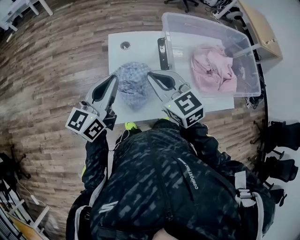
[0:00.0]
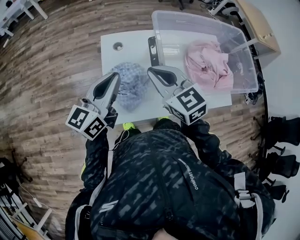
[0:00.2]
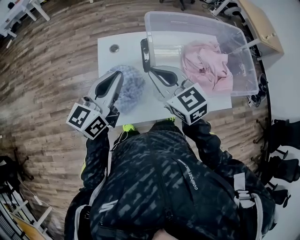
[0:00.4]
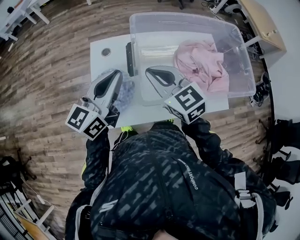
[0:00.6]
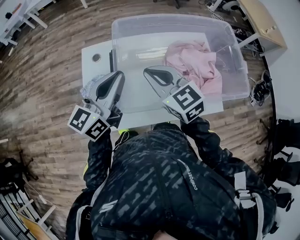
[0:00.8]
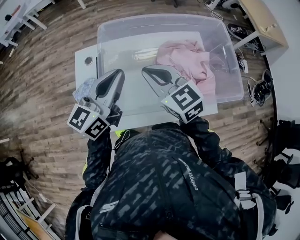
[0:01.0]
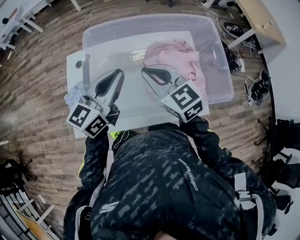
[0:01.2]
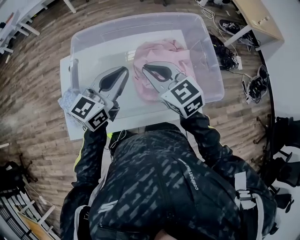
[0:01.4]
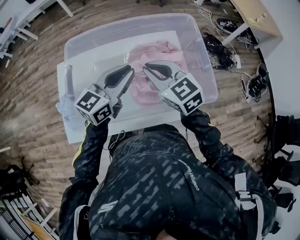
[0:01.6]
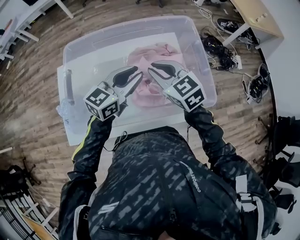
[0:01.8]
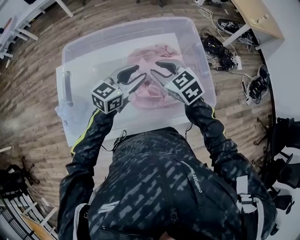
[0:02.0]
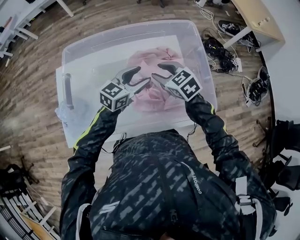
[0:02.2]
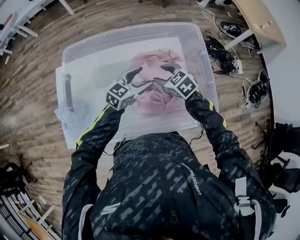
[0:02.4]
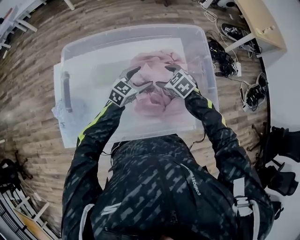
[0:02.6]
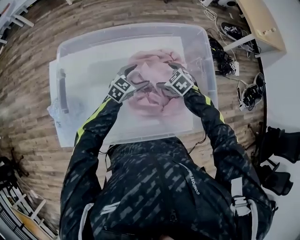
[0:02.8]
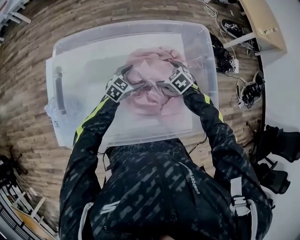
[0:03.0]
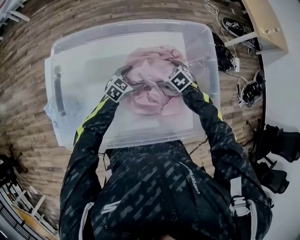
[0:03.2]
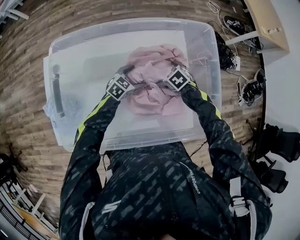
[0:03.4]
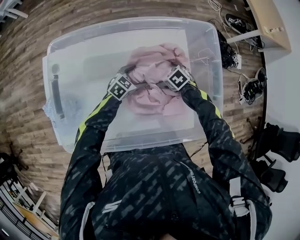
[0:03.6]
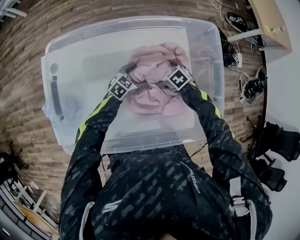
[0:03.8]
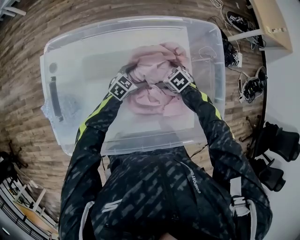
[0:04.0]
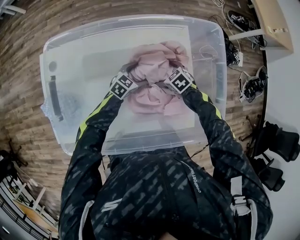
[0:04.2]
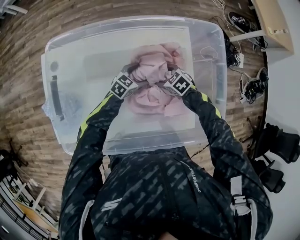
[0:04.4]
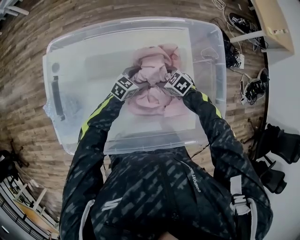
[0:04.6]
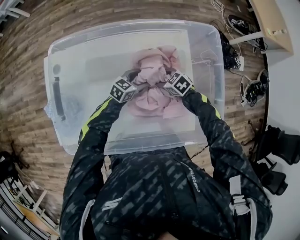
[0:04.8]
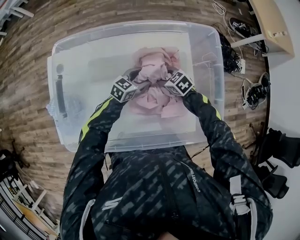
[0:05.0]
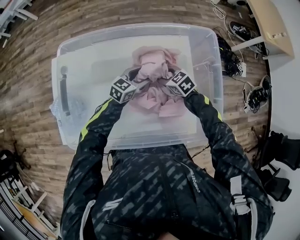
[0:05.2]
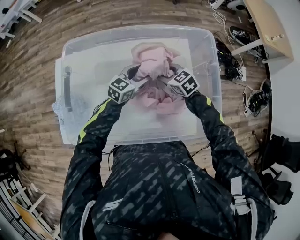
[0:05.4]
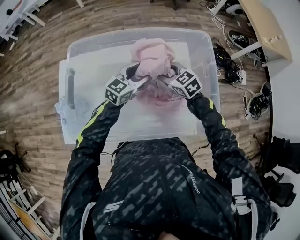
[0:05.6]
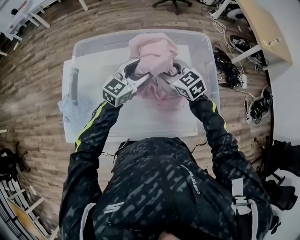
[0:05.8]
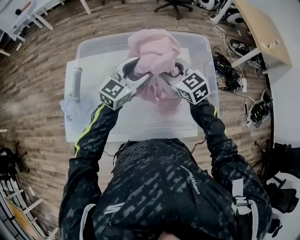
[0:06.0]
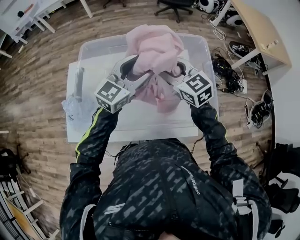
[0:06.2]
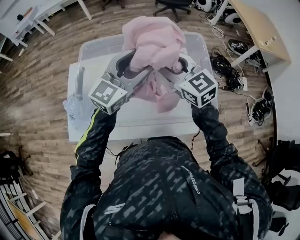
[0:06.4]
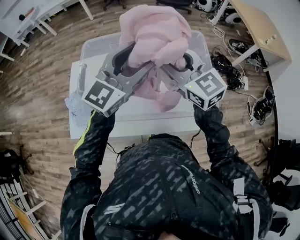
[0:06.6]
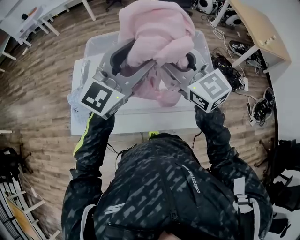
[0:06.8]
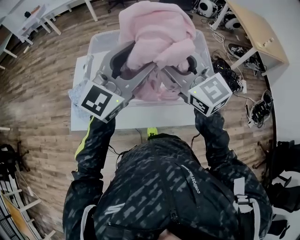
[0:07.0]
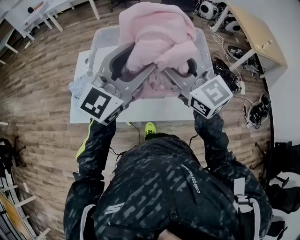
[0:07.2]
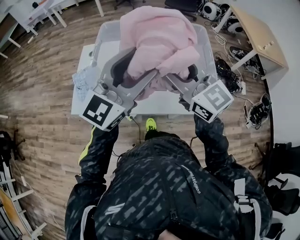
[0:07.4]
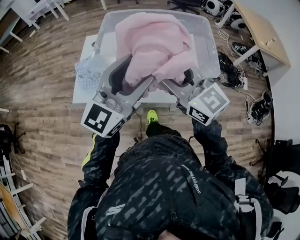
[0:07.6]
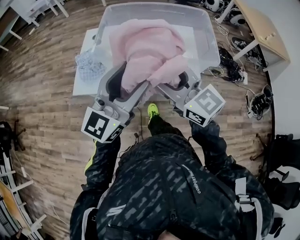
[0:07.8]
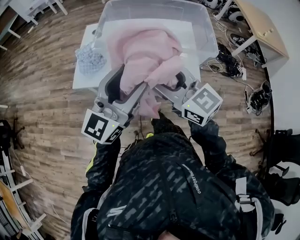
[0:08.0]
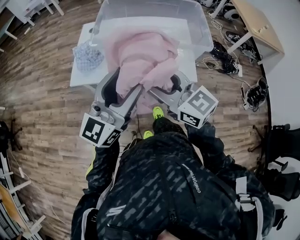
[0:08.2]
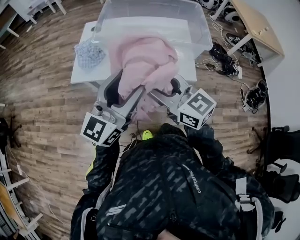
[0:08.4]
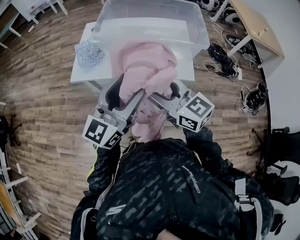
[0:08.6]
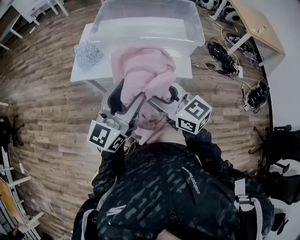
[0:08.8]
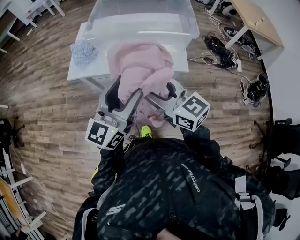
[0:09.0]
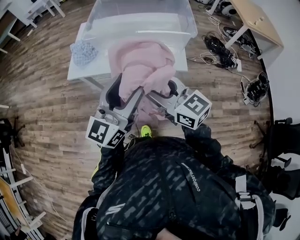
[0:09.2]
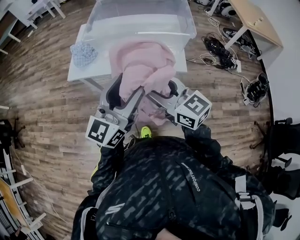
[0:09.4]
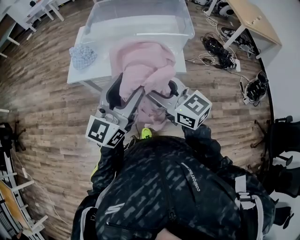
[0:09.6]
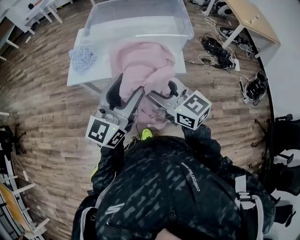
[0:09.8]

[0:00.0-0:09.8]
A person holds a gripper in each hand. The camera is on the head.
0:00.0 to 0:01.4: The two grippers travel together, to the right, roughly 40 cm.
0:01.4 to 0:02.8: The right gripper travels downward, forward and to the right by approximately 30 cm, tips its fingers downward by approximately 40 degrees, and opens its fingers, while the left gripper heads downward and forward, covering roughly 30 cm, swivels roughly 30 degrees, and opens up.
0:02.8 to 0:04.2: The two grippers go about 10 cm downward.
0:04.2 to 0:05.6: The grippers both shift upward by approximately 20 cm. The left gripper changes its angle by some 30 degrees, and closes its fingers. Meanwhile the right gripper rotates approximately 30 degrees, and closes.
0:05.6 to 0:07.0: The two grippers go roughly 35 cm upward and backward. The right gripper angles its fingers upward, by roughly 30 degrees. The left gripper swivels approximately 30 degrees.
0:07.0 to 0:08.4: Both grippers travel together backward, some 35 cm. The left gripper turns by roughly 20 degrees; the right gripper rotates about 20 degrees.
0:08.4 to 0:09.8: Both grippers move backward and to the right, roughly 10 cm.

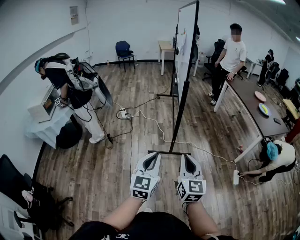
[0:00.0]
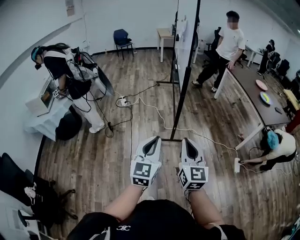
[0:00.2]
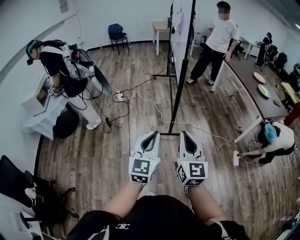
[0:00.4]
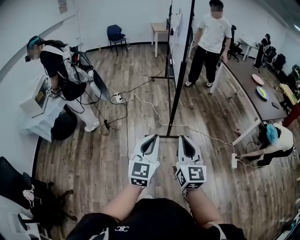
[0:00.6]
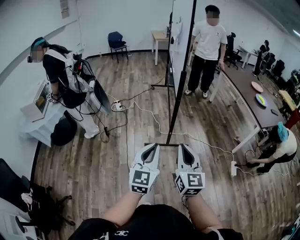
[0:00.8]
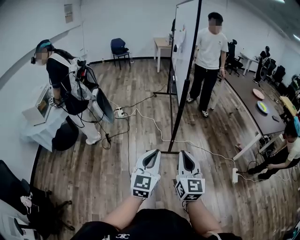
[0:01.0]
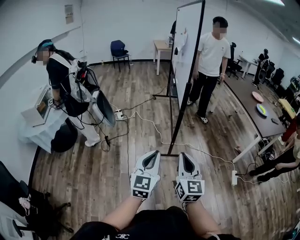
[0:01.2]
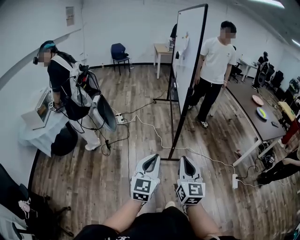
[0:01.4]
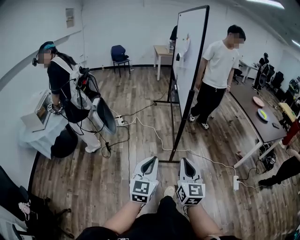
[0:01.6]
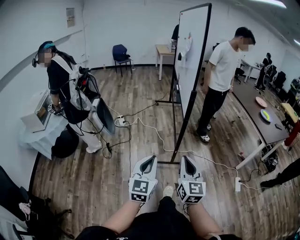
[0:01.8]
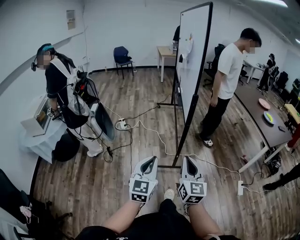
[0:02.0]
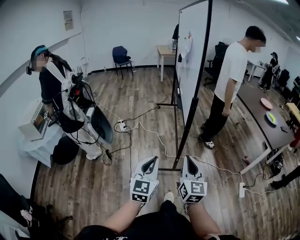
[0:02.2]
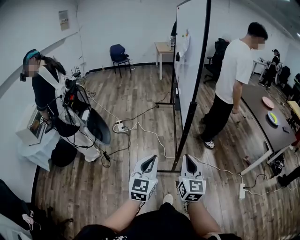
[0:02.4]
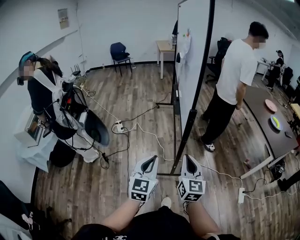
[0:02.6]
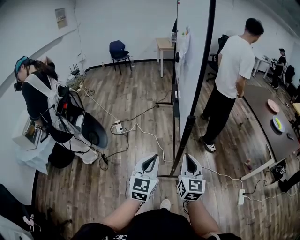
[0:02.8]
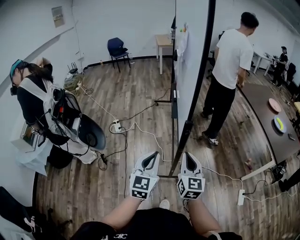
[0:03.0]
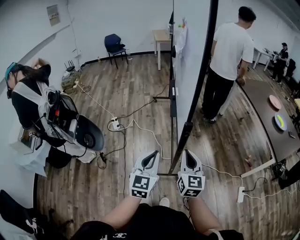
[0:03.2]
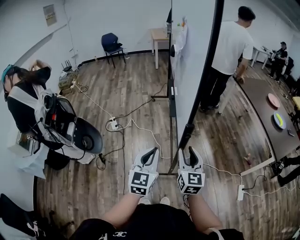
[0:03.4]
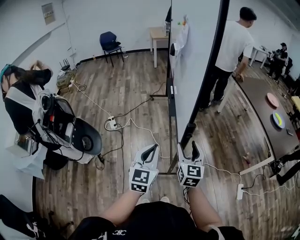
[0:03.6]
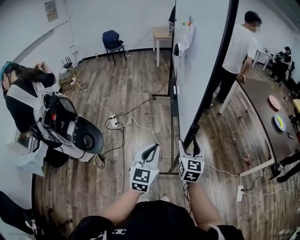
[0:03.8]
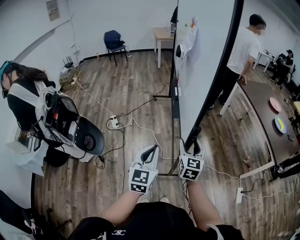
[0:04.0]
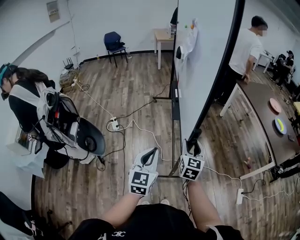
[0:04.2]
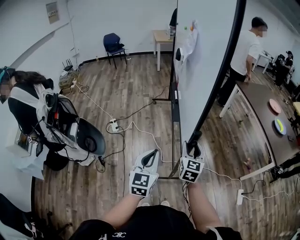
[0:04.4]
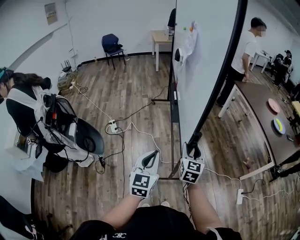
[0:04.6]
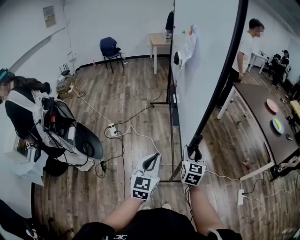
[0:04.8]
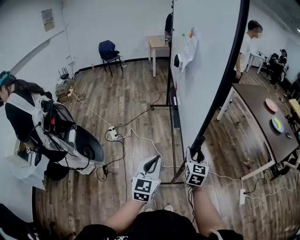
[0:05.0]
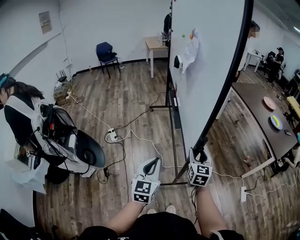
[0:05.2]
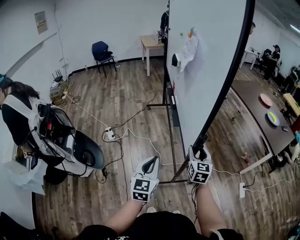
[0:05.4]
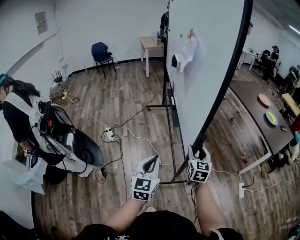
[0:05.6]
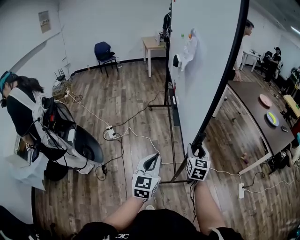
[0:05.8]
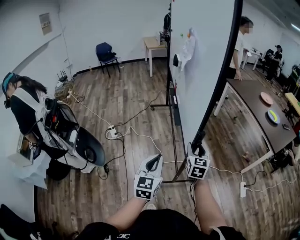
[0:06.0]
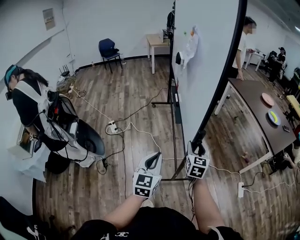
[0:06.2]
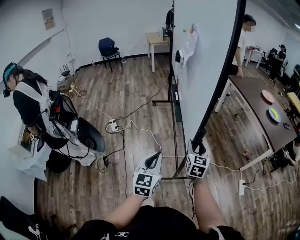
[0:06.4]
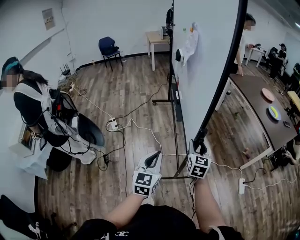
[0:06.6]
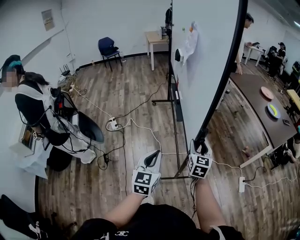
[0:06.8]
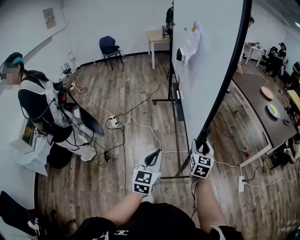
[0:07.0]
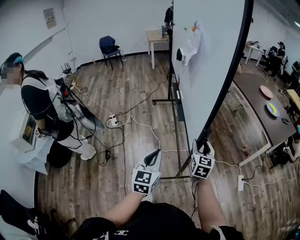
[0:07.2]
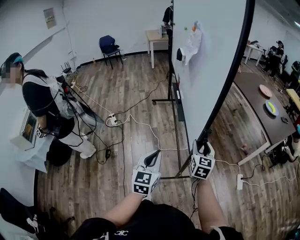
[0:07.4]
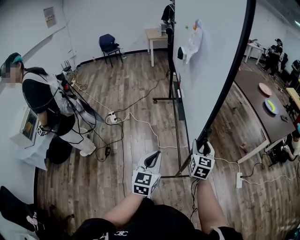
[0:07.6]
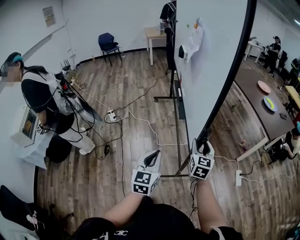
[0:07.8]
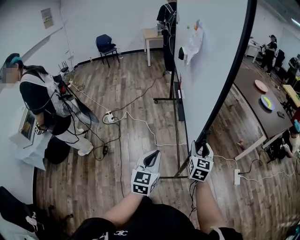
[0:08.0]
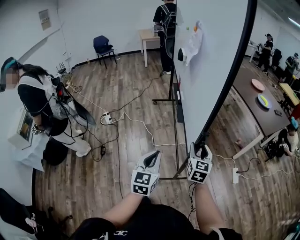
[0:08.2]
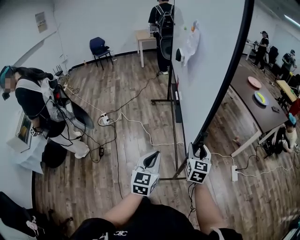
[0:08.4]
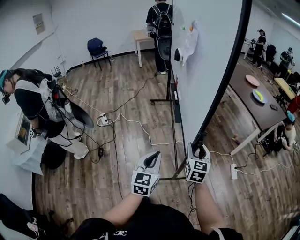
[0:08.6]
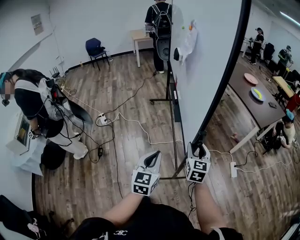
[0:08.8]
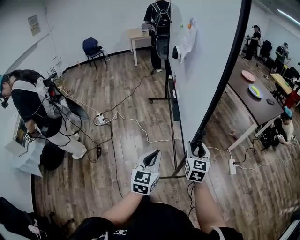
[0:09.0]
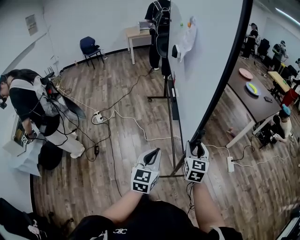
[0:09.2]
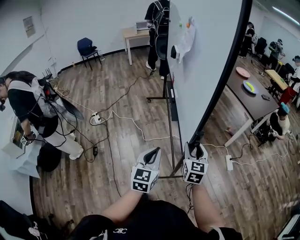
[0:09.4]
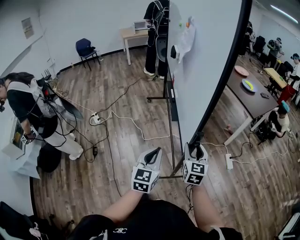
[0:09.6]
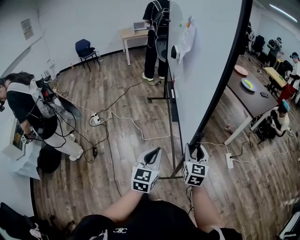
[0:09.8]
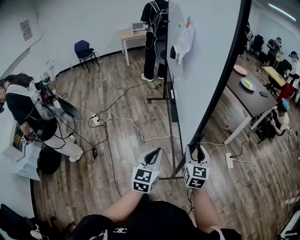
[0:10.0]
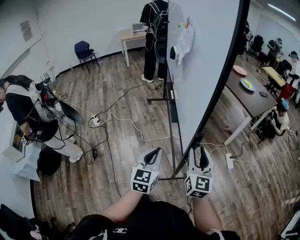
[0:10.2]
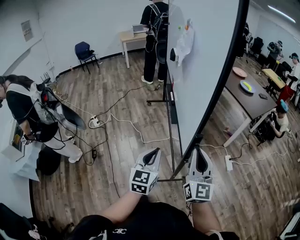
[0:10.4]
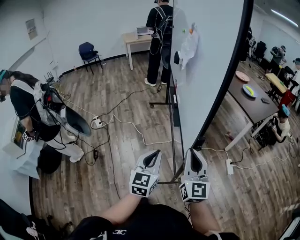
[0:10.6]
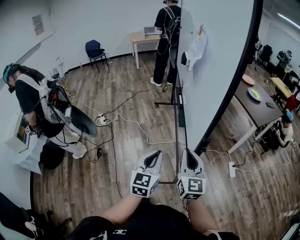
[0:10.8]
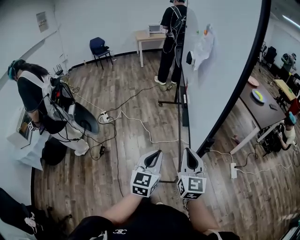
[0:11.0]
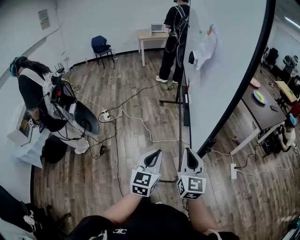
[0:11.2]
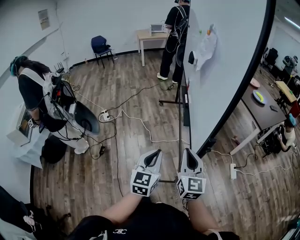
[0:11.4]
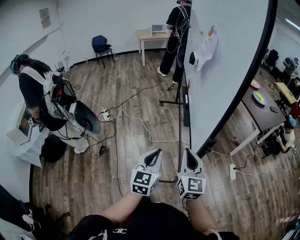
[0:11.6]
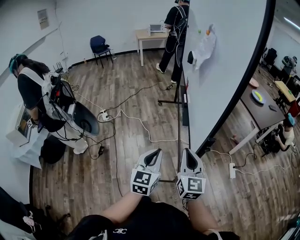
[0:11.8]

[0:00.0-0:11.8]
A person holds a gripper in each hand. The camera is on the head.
0:00.0 to 0:01.4: Both grippers move forward and to the left, about 10 cm.
0:01.4 to 0:03.0: Both grippers move forward, approximately 35 cm.
0:03.0 to 0:04.4: The right gripper shifts about 10 cm forward, and opens up; the left gripper goes about 5 cm forward.
0:04.4 to 0:06.0: The right gripper shifts by roughly 5 cm; the left gripper is displaced backward by roughly 5 cm.
0:06.0 to 0:07.4: The right gripper heads to the right and backward, covering some 15 cm, while the left gripper travels backward and to the right by about 10 cm.
0:07.4 to 0:08.8: The right gripper moves backward and to the right, approximately 10 cm; the left gripper travels to the right and backward by approximately 10 cm.
0:08.8 to 0:10.4: The right gripper travels backward and upward by some 15 cm, changes its angle by approximately 30 degrees, and closes its fingers.
0:10.4 to 0:11.8: The right gripper moves to the left, some 10 cm.

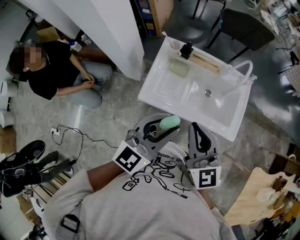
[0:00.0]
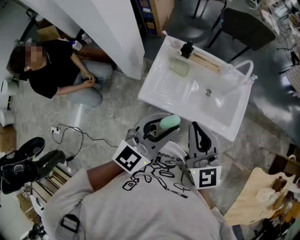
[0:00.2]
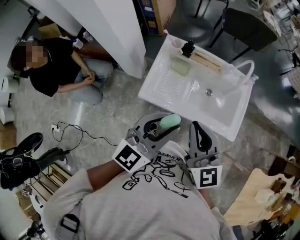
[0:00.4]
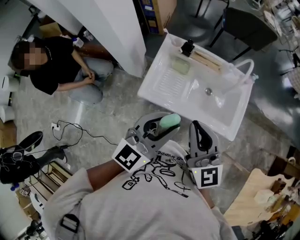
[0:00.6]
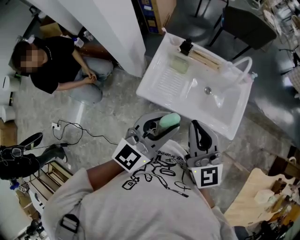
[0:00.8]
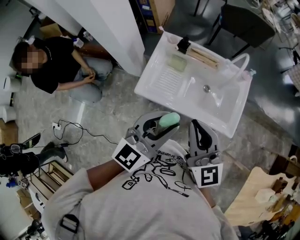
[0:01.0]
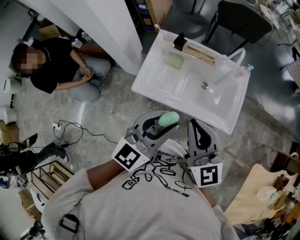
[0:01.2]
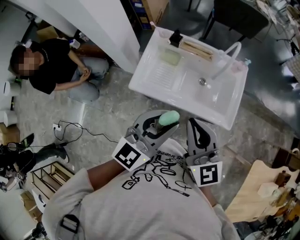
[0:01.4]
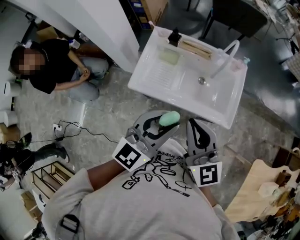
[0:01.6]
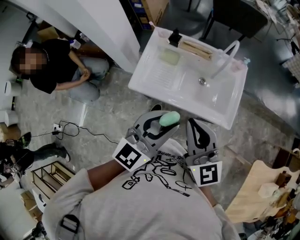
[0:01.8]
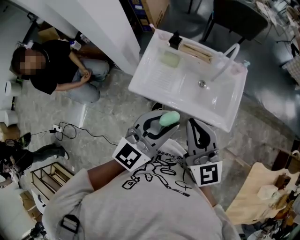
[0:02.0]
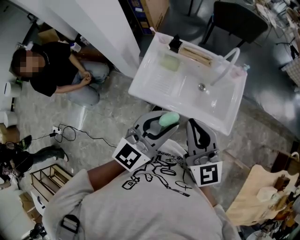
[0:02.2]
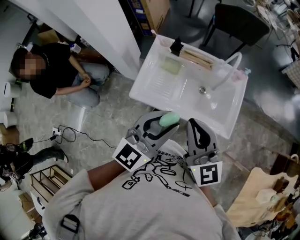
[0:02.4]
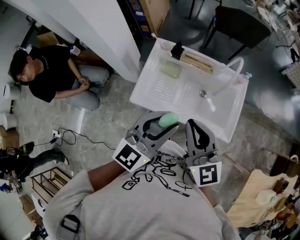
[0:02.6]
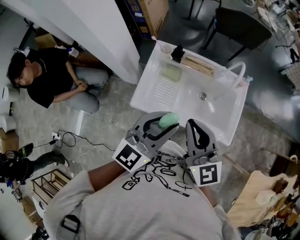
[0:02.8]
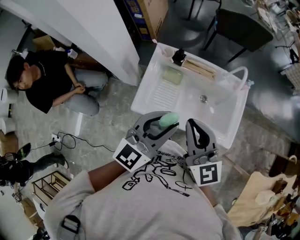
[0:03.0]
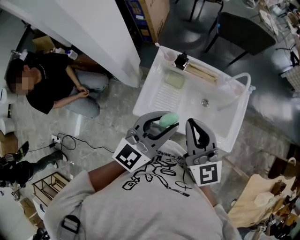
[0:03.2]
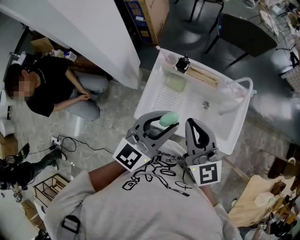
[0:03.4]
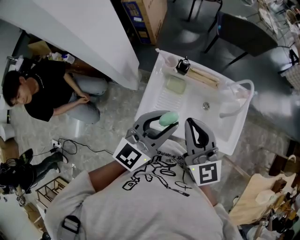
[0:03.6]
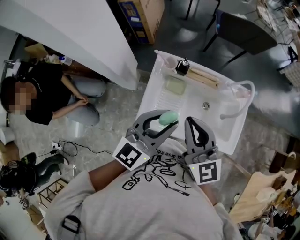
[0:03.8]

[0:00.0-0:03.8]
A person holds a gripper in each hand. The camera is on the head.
0:00.0 to 0:01.2: Both grippers travel together to the right, some 5 cm.
0:01.2 to 0:02.6: The left gripper moves approximately 5 cm.
0:02.6 to 0:03.8: The two grippers go some 15 cm forward and to the left.
